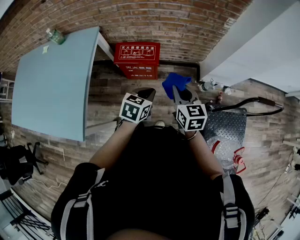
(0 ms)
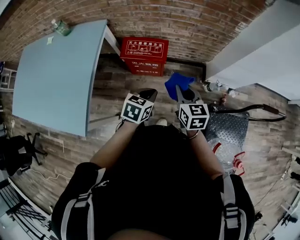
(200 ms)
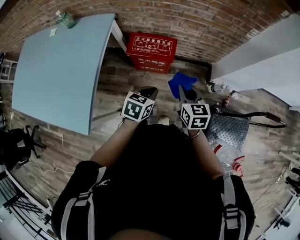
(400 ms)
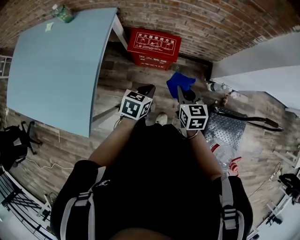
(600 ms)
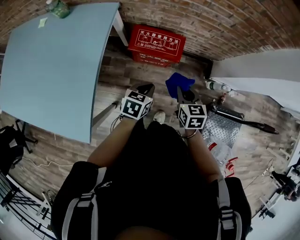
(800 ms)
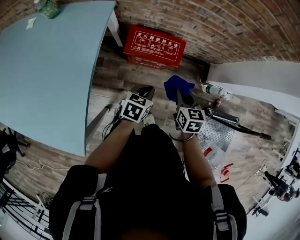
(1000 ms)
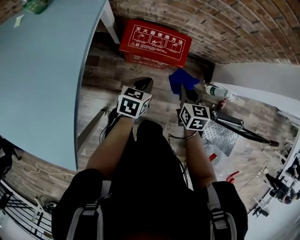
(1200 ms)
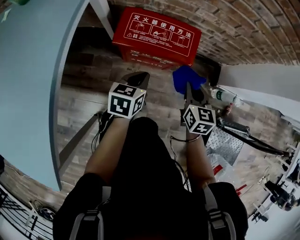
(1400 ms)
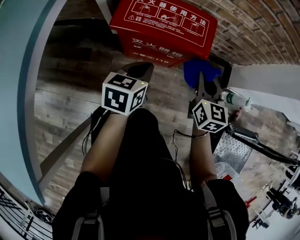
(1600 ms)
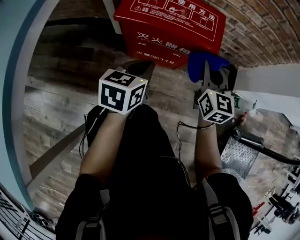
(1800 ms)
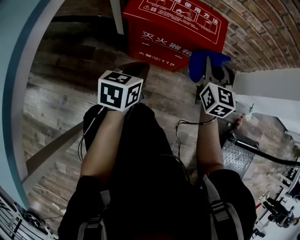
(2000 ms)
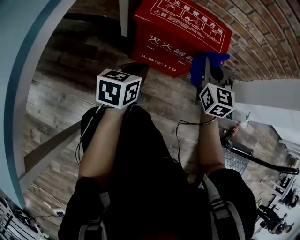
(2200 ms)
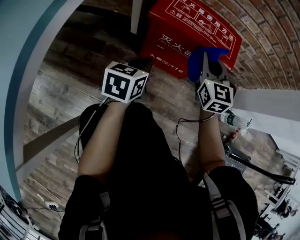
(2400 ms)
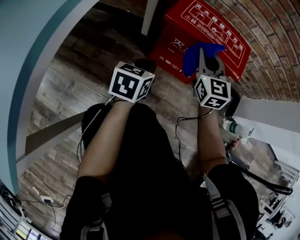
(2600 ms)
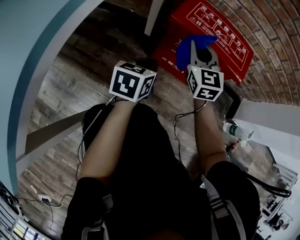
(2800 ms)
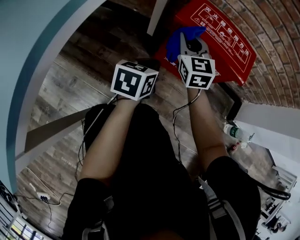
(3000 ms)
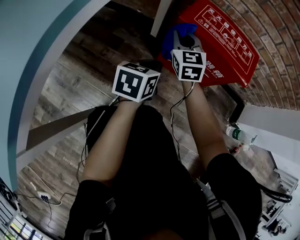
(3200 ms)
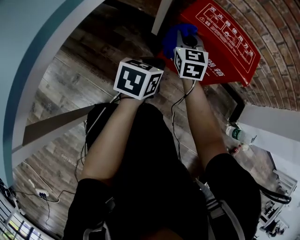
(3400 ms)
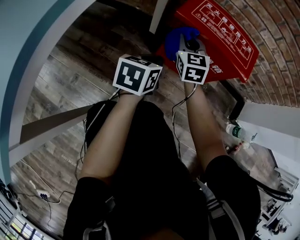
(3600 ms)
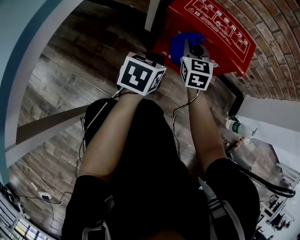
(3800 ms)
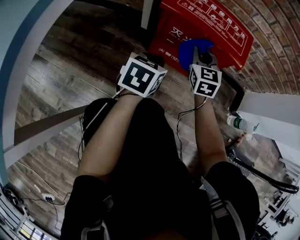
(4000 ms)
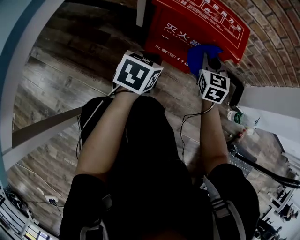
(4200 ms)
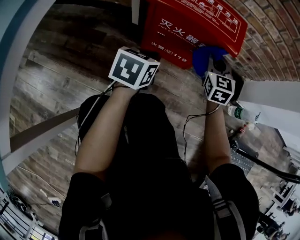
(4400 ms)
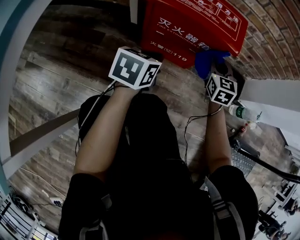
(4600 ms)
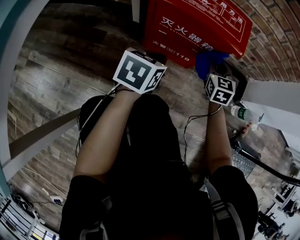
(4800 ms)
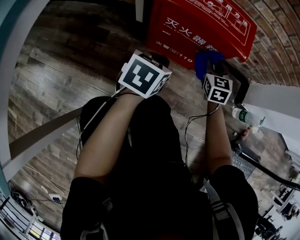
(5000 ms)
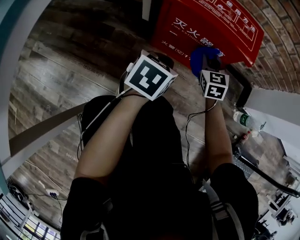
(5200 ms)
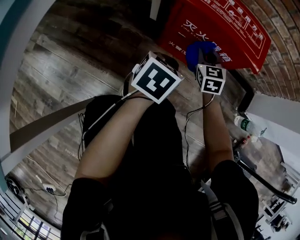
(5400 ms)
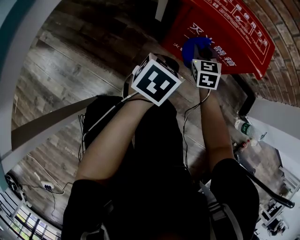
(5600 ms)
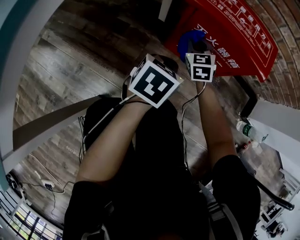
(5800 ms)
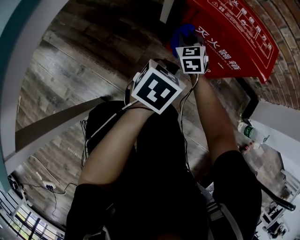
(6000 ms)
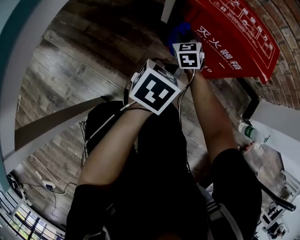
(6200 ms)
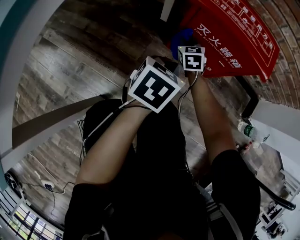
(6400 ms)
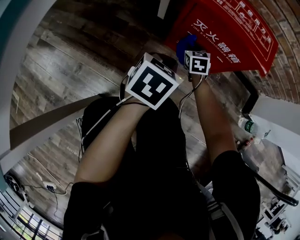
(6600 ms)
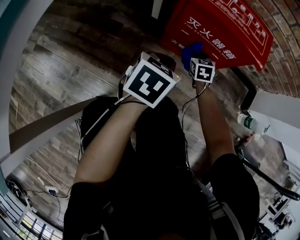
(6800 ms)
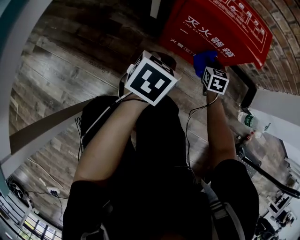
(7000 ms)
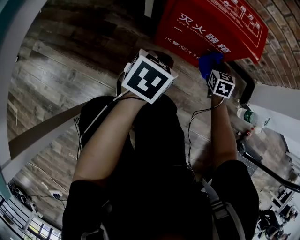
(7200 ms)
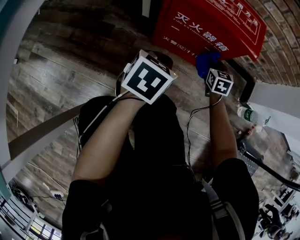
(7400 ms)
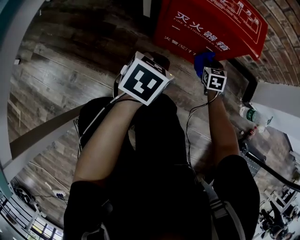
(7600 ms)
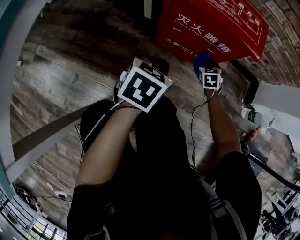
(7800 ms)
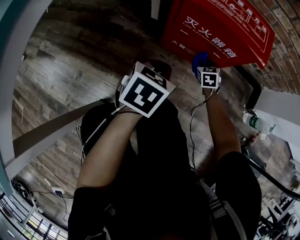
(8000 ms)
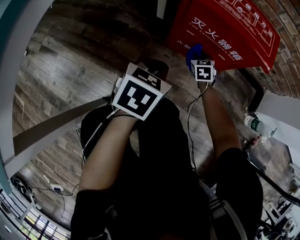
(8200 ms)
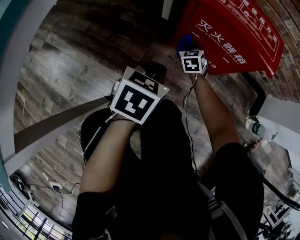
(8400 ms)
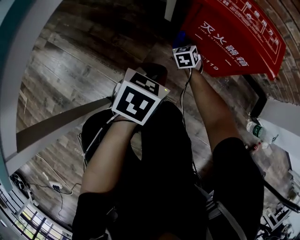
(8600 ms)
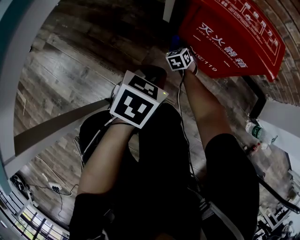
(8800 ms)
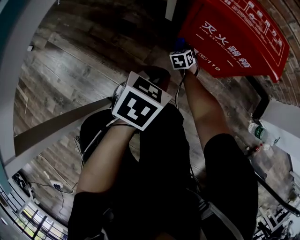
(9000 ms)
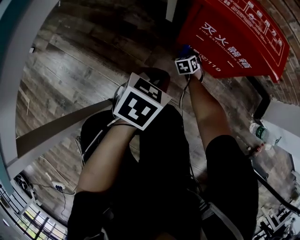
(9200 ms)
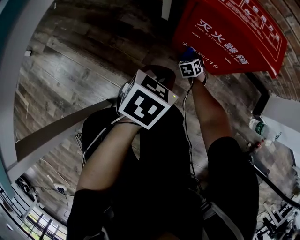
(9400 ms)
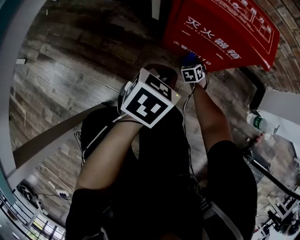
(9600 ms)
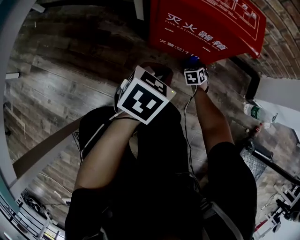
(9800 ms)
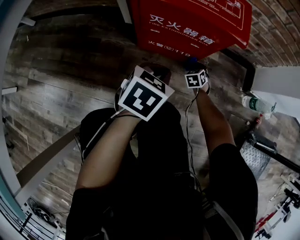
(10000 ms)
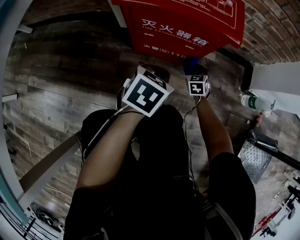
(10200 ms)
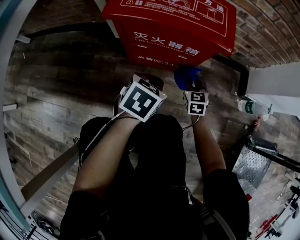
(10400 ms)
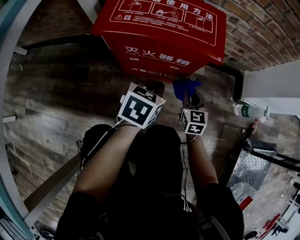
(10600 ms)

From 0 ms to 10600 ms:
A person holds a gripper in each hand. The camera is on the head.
From 0 ms to 1600 ms: The left gripper is displaced downward, to the left and forward by roughly 50 cm. Meanwhile the right gripper goes some 40 cm downward and forward.
From 1600 ms to 3000 ms: The right gripper is displaced to the left by some 30 cm, and changes its angle by about 30 degrees, while the left gripper goes approximately 15 cm to the left and downward.
From 3000 ms to 4600 ms: The left gripper heads to the right, covering roughly 10 cm; the right gripper goes some 25 cm to the right, and turns by roughly 20 degrees.
From 4600 ms to 6000 ms: The right gripper shifts approximately 30 cm to the left, and swivels roughly 30 degrees. The left gripper ends up about 5 cm from where it was.
From 6000 ms to 7600 ms: The right gripper shifts roughly 25 cm to the right and downward, and turns by roughly 30 degrees.
From 7600 ms to 9000 ms: The left gripper moves to the left, some 5 cm; the right gripper goes about 25 cm to the left and downward.
From 9000 ms to 10600 ms: The left gripper is displaced forward and to the right by about 20 cm, while the right gripper shifts some 35 cm to the right and upward, and changes its angle by approximately 40 degrees.

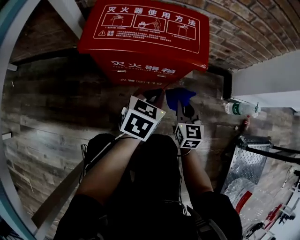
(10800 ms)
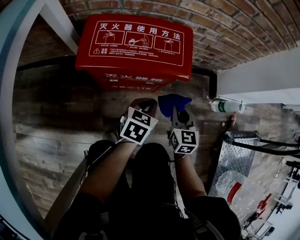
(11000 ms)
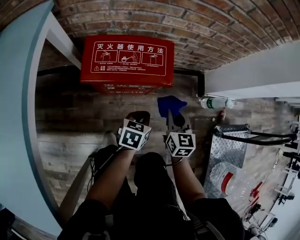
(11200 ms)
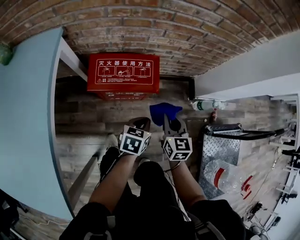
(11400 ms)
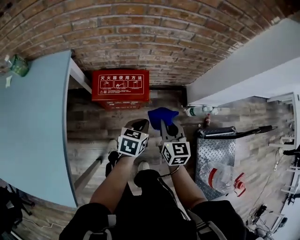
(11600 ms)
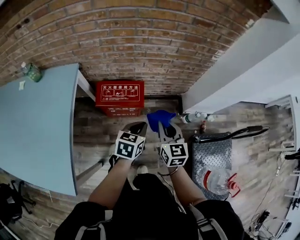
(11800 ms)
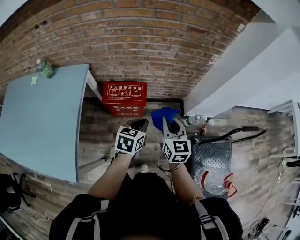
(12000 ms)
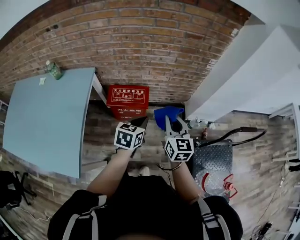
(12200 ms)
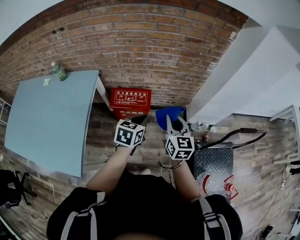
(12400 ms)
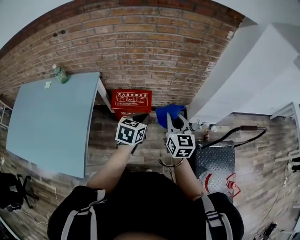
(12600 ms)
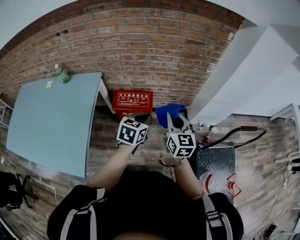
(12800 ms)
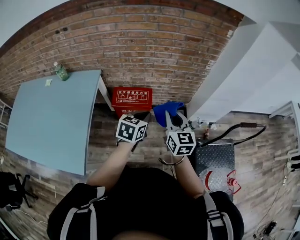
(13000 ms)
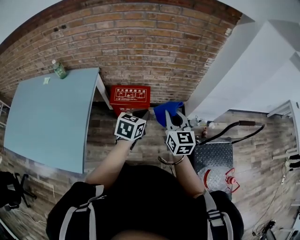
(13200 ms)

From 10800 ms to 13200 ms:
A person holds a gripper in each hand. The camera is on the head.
From 10800 ms to 12000 ms: The grippers both shift upward by roughly 60 cm.
From 12000 ms to 13200 ms: The left gripper shifts approximately 10 cm upward, while the right gripper is displaced upward and backward by about 10 cm.

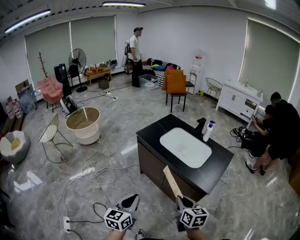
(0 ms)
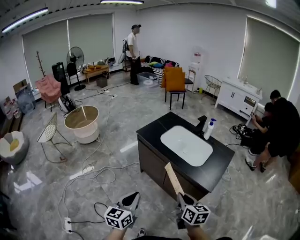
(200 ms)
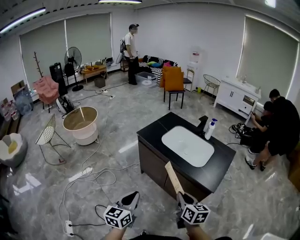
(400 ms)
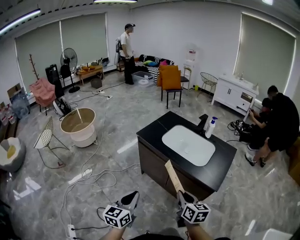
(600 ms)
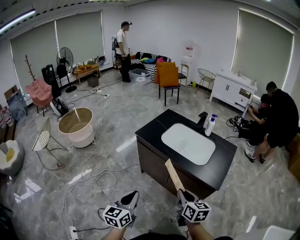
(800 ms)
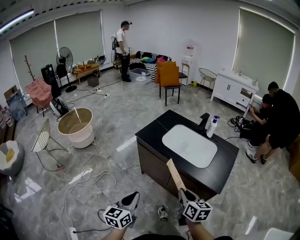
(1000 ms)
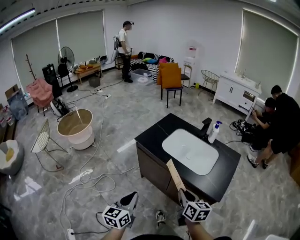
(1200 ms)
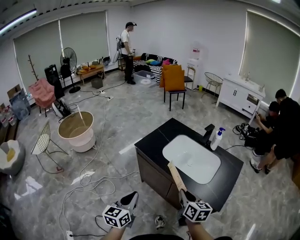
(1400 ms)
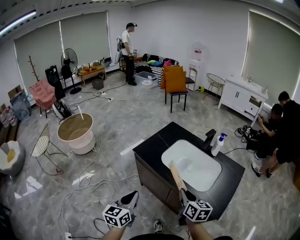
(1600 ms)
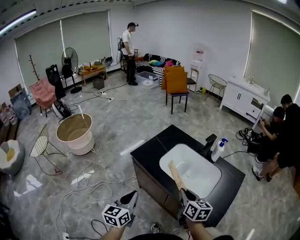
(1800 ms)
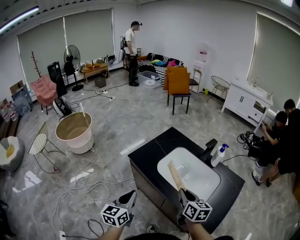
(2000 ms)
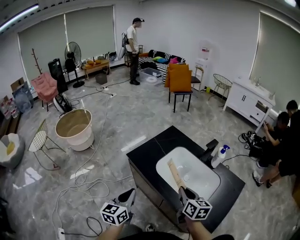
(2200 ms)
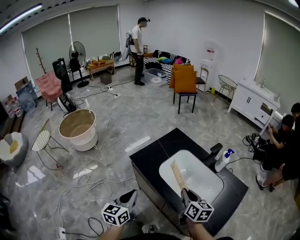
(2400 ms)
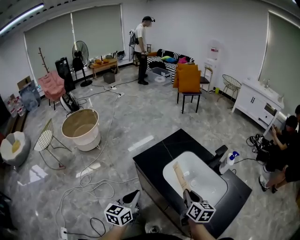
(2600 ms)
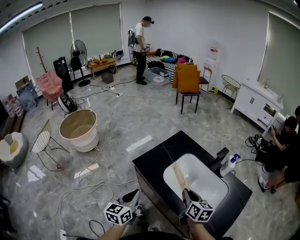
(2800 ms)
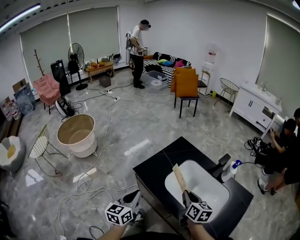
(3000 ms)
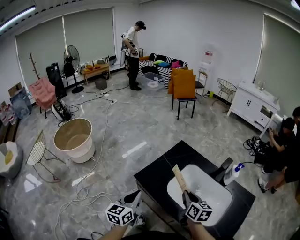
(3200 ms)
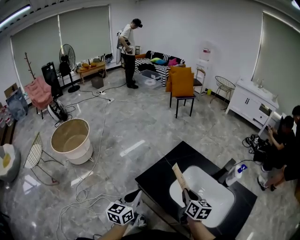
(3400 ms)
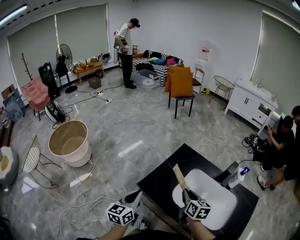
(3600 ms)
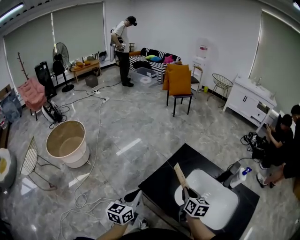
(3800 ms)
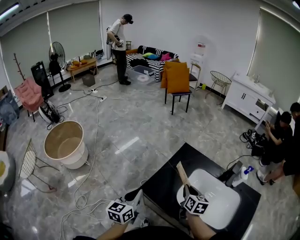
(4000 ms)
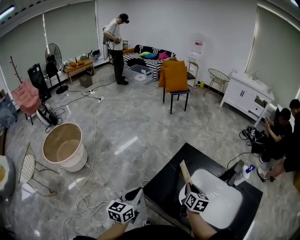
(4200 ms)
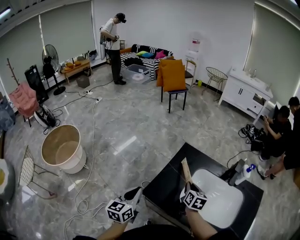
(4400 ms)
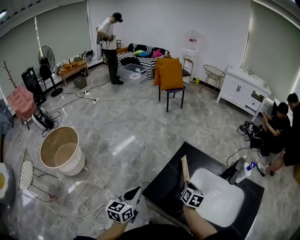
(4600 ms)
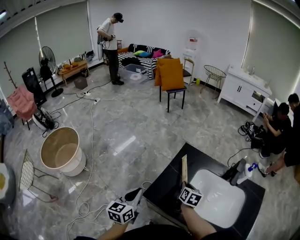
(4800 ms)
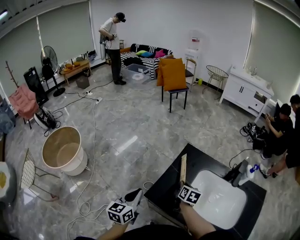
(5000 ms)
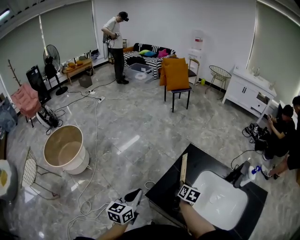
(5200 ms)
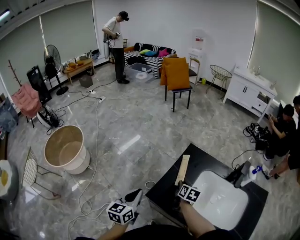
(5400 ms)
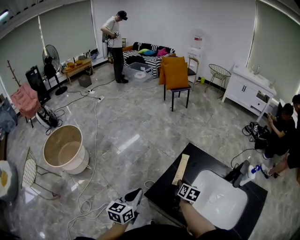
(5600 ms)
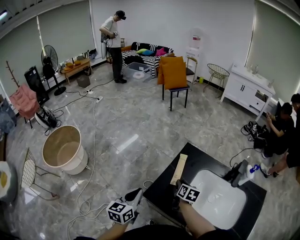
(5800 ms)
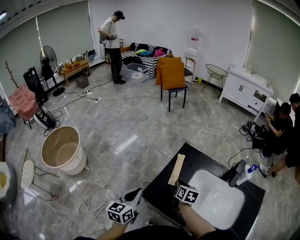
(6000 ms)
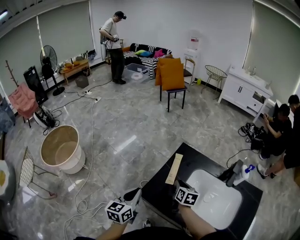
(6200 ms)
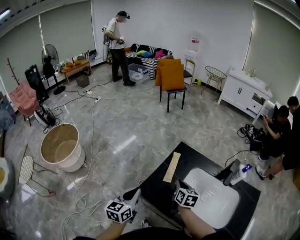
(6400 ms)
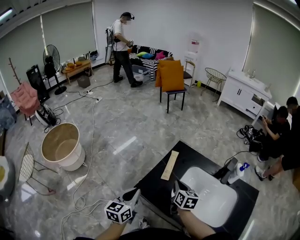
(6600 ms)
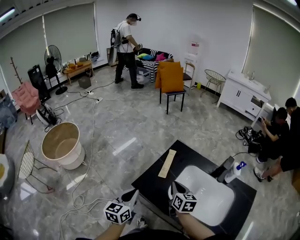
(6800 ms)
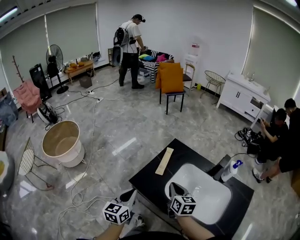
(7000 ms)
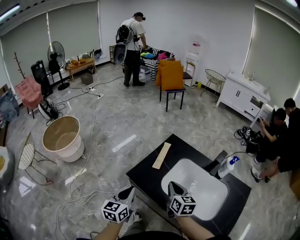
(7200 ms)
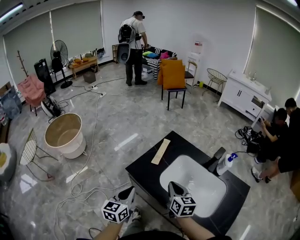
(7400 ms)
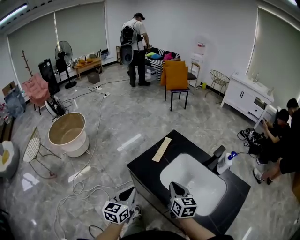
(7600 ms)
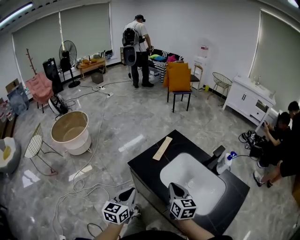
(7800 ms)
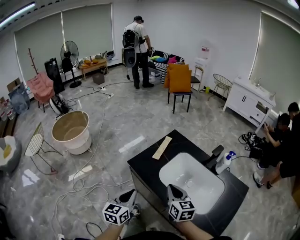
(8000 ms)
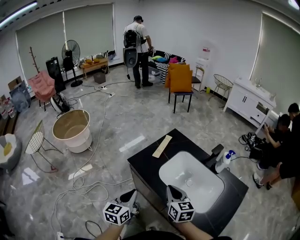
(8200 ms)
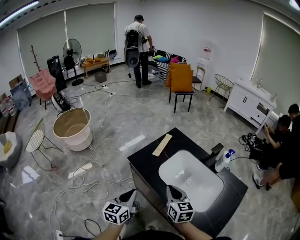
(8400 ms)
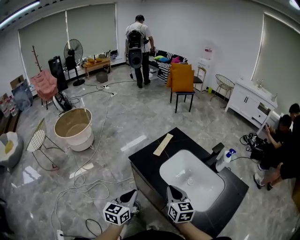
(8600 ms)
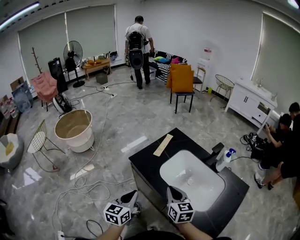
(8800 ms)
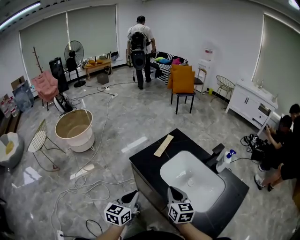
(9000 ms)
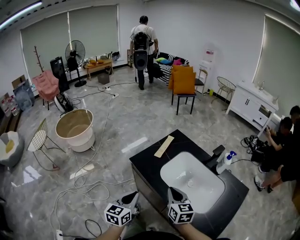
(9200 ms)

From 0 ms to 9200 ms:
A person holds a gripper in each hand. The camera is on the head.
From 0 ms to 1600 ms: Both grippers move forward, roughly 25 cm.
From 1600 ms to 3000 ms: Both grippers travel together forward, approximately 20 cm.
From 3000 ms to 4600 ms: The right gripper moves forward, to the left and downward, some 25 cm, and rotates roughly 30 degrees. The left gripper shifts approximately 25 cm forward and to the left.
From 6200 ms to 7600 ms: The left gripper travels backward and to the right by some 20 cm; the right gripper moves backward and upward, about 20 cm, and changes its angle by about 30 degrees.
From 7600 ms to 9200 ms: The grippers both shift backward by approximately 5 cm.

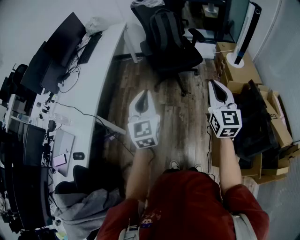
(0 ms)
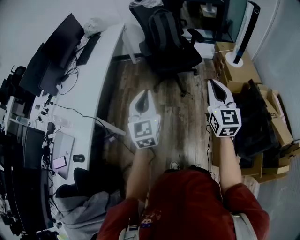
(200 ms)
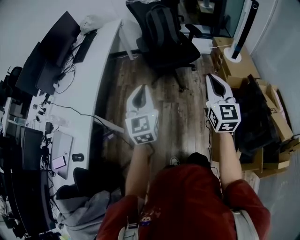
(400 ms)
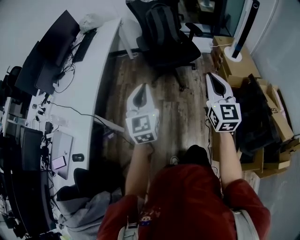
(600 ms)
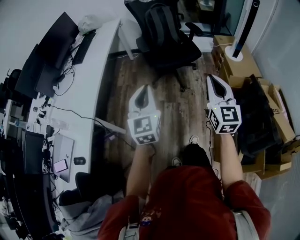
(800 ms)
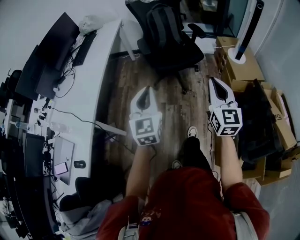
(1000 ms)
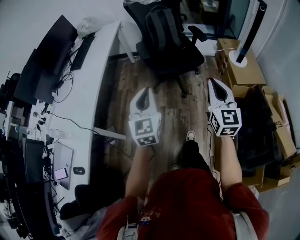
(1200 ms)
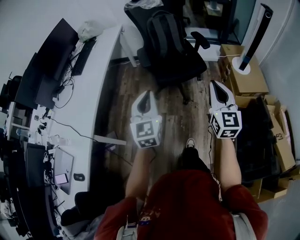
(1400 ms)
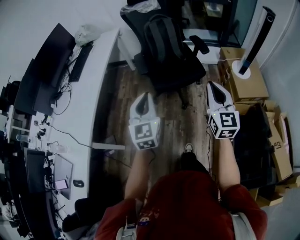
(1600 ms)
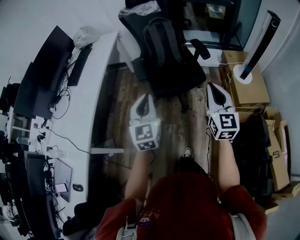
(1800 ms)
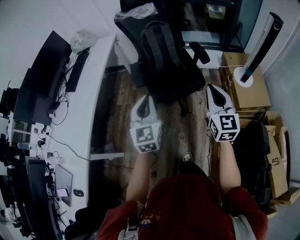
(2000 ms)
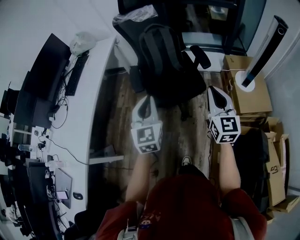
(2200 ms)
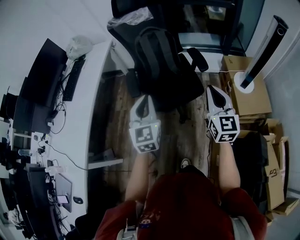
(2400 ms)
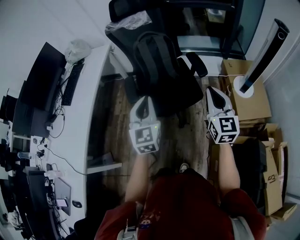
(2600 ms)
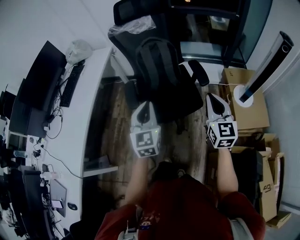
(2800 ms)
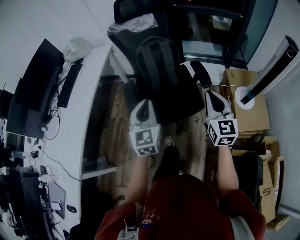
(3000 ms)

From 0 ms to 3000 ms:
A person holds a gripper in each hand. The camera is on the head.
From 0 ms to 1600 ms: The two grippers go about 25 cm forward.
From 1600 ms to 3000 ms: Both grippers travel together forward, roughly 30 cm.
